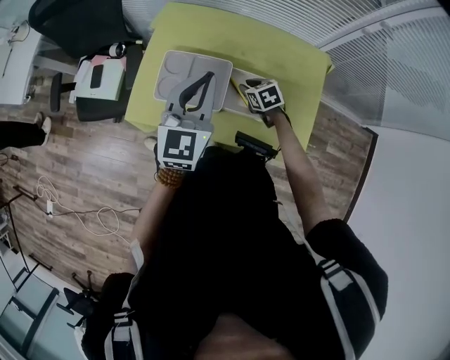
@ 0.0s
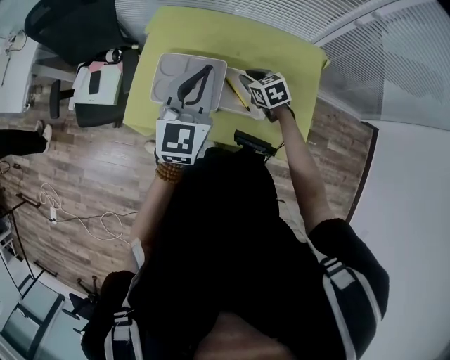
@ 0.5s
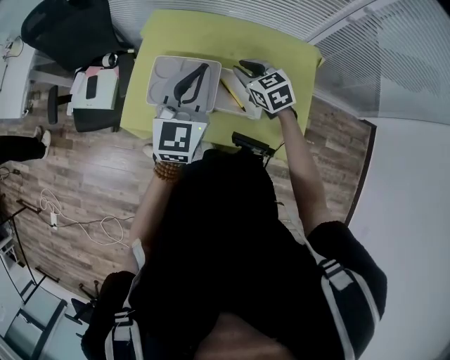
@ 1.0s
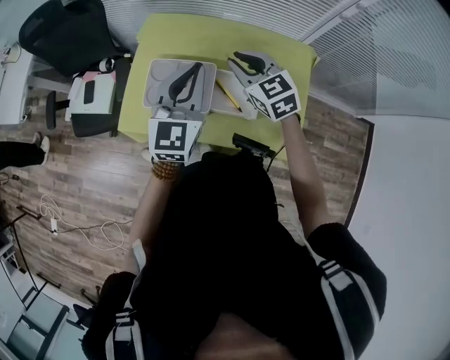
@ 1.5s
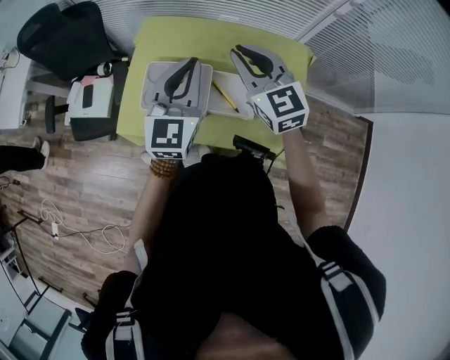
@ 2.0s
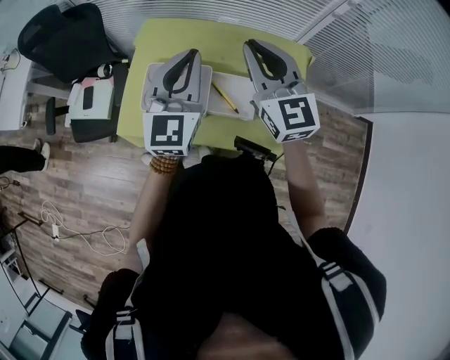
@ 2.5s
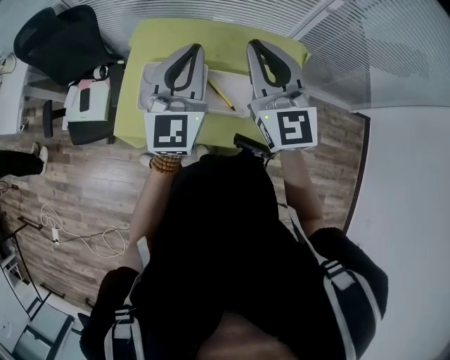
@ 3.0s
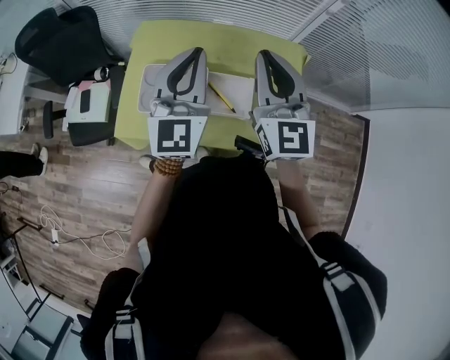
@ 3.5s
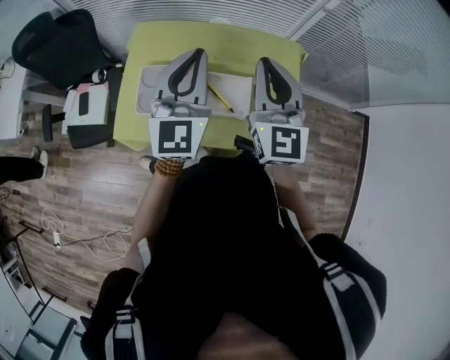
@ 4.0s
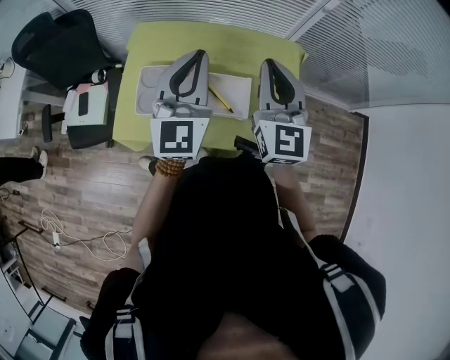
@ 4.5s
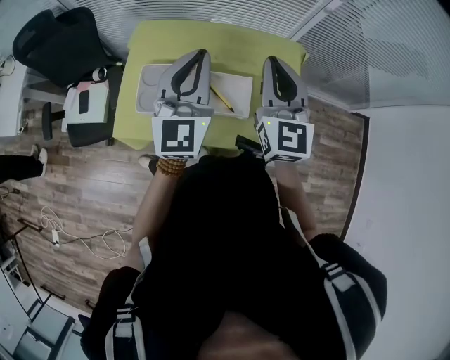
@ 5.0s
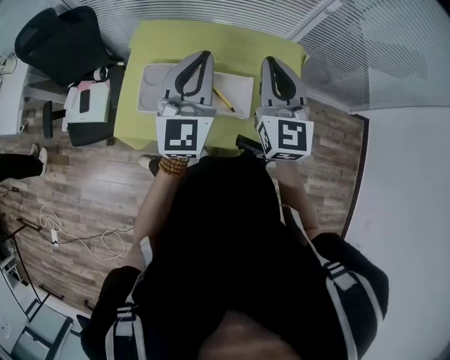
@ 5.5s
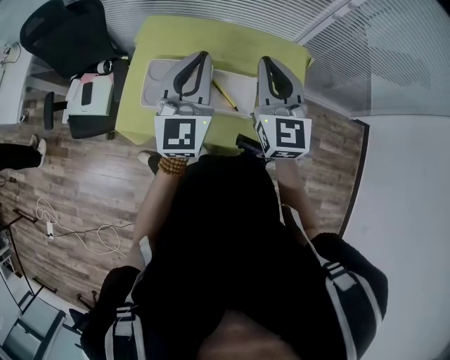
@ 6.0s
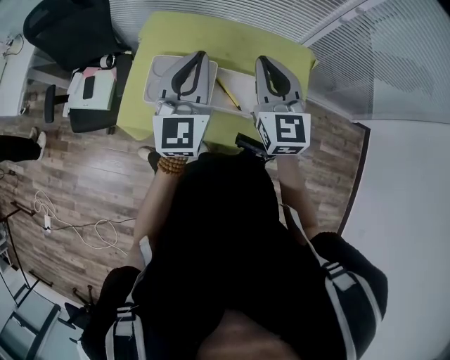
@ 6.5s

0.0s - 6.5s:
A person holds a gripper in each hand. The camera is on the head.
0.0s - 2.0s: The left gripper ends up about 5 cm from where it was, while the right gripper is displaced upward by roughly 30 cm, and points its fingers some 40 degrees further upward.
2.0s - 4.5s: The right gripper goes roughly 10 cm to the right, backward and upward, and changes its angle by roughly 30 degrees, while the left gripper shifts approximately 5 cm upward.
4.5s - 6.5s: The right gripper shifts by some 5 cm.

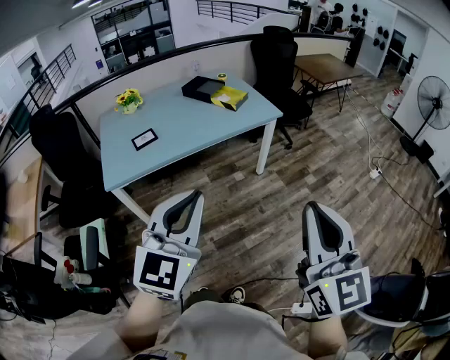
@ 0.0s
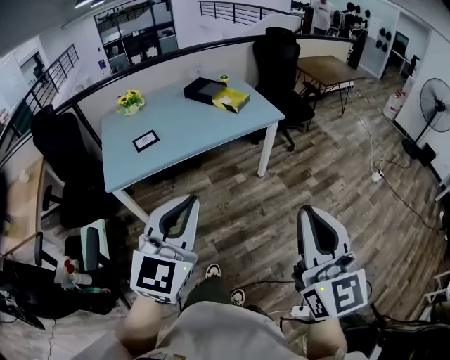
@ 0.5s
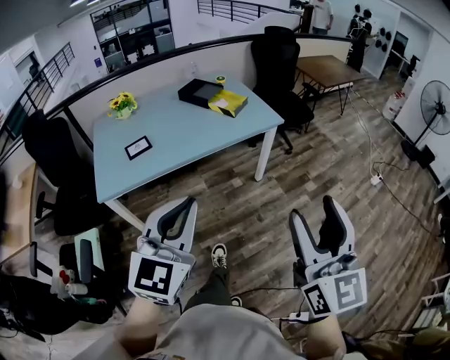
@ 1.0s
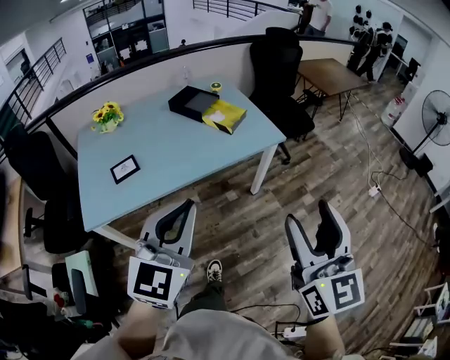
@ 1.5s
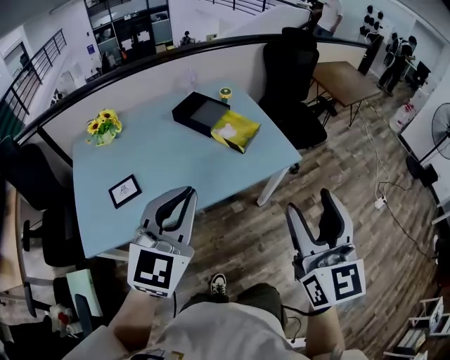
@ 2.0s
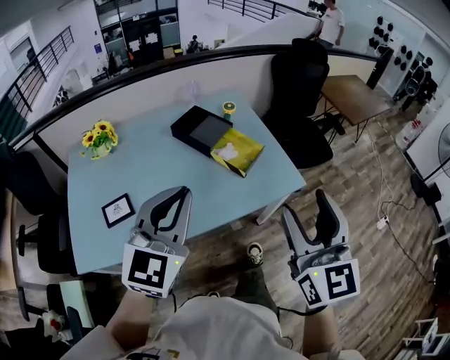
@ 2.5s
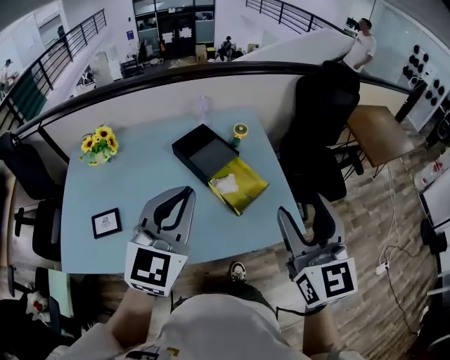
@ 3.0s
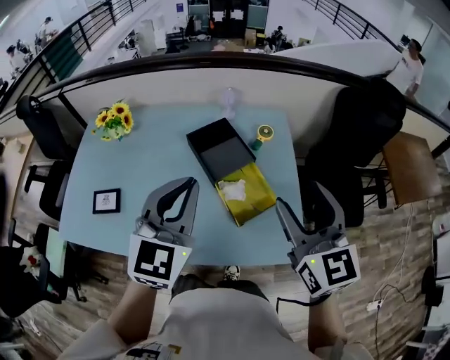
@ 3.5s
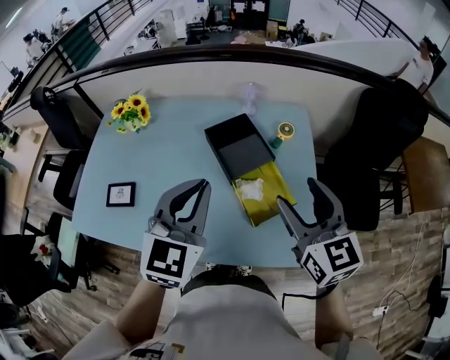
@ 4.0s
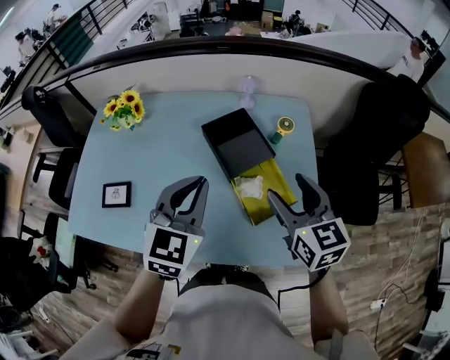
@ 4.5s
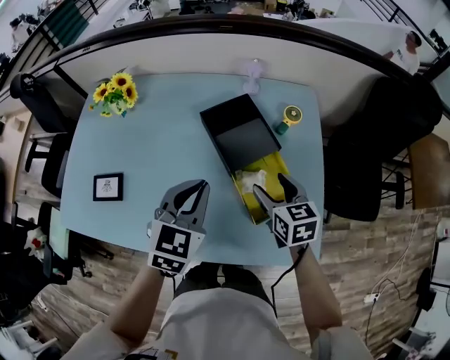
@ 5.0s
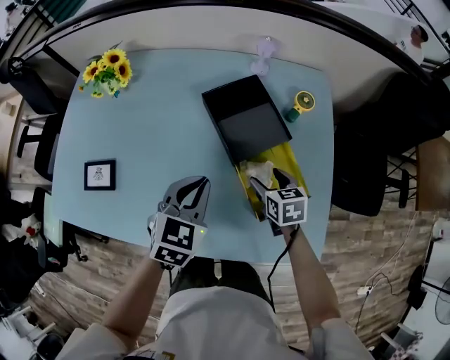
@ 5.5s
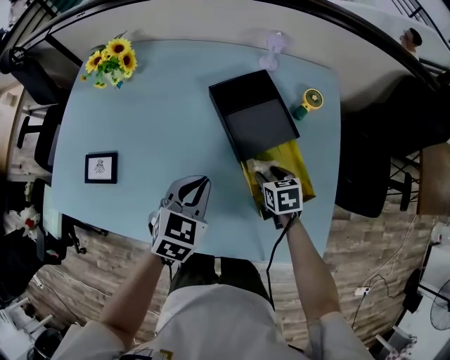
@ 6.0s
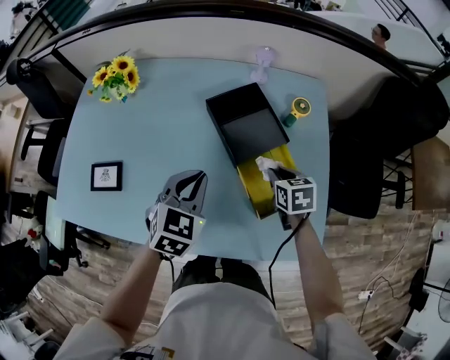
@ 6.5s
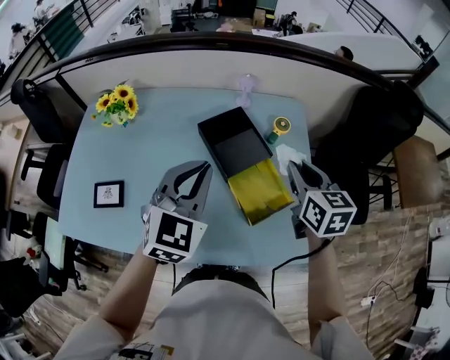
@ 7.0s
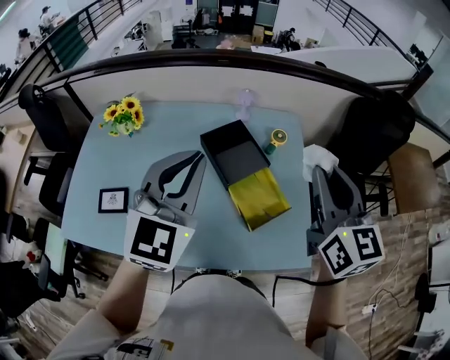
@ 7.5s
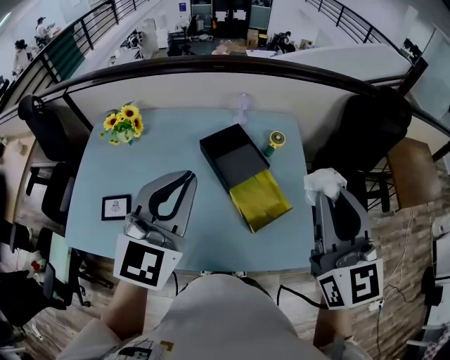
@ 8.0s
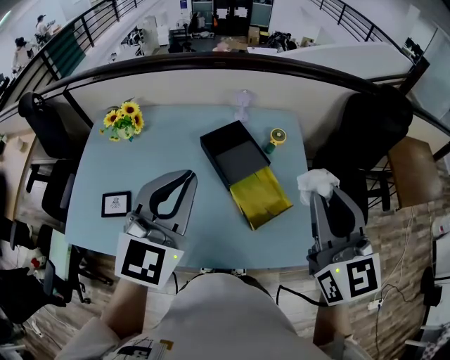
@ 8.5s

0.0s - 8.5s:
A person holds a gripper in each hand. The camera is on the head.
0.0s - 2.0s: The two grippers travel together, forward, about 50 cm. The right gripper opens its fingers.
2.0s - 4.0s: The left gripper changes place by roughly 40 cm, and changes its angle by roughly 30 degrees. Meanwhile the right gripper ends up about 50 cm from where it was, and rotates approximately 40 degrees.
4.0s - 6.5s: The right gripper shifts approximately 30 cm downward, tips its fingers downward by roughly 40 degrees, and closes up. Meanwhile the left gripper moves downward, some 20 cm, and rotates approximately 20 degrees.
6.5s - 8.5s: The right gripper moves upward, roughly 40 cm, and points its fingers some 50 degrees further upward, while the left gripper heads upward, covering about 25 cm, and points its fingers approximately 30 degrees further upward.

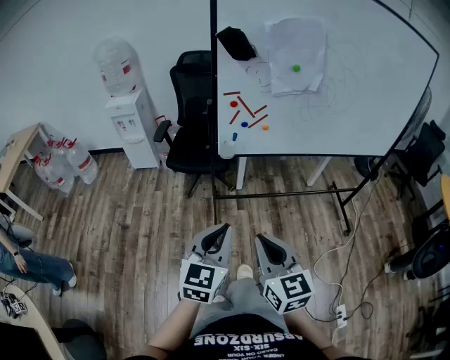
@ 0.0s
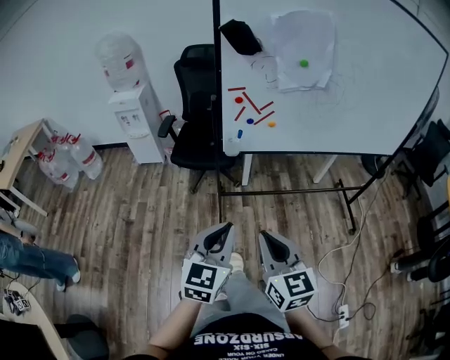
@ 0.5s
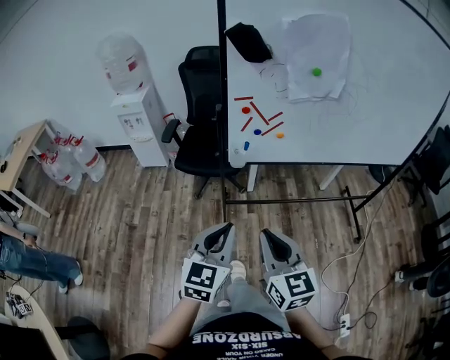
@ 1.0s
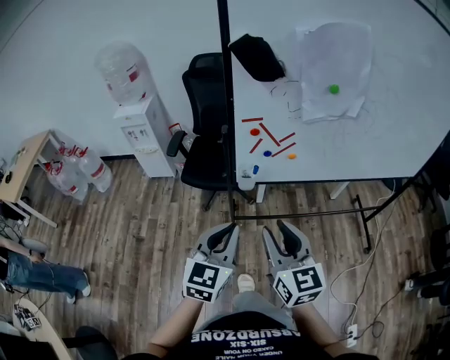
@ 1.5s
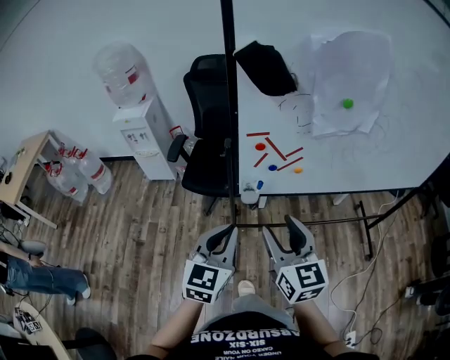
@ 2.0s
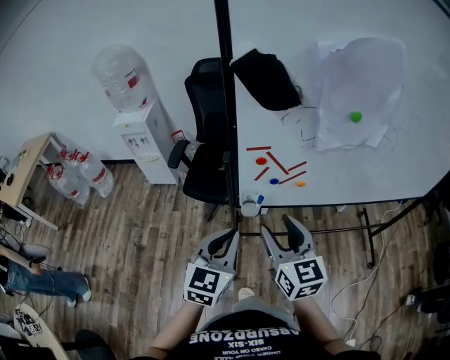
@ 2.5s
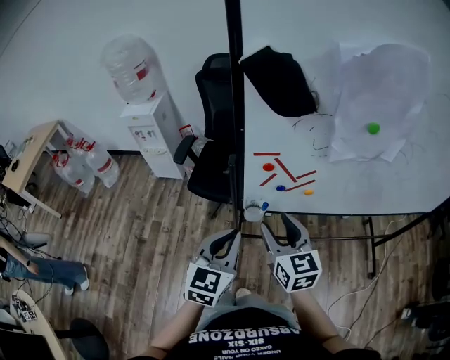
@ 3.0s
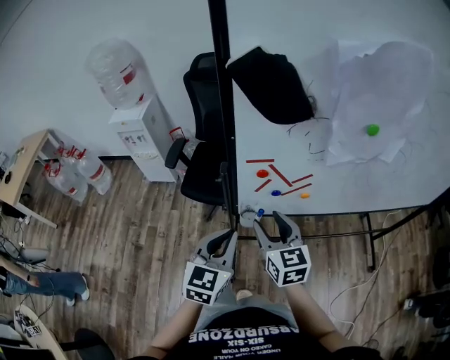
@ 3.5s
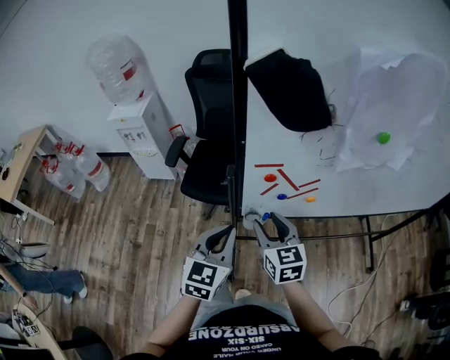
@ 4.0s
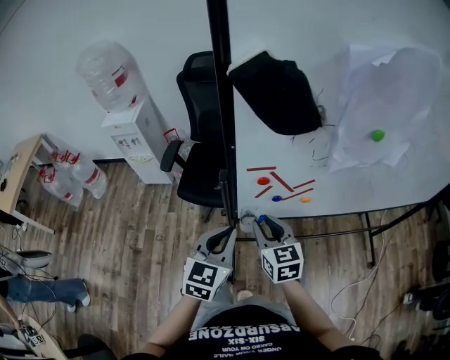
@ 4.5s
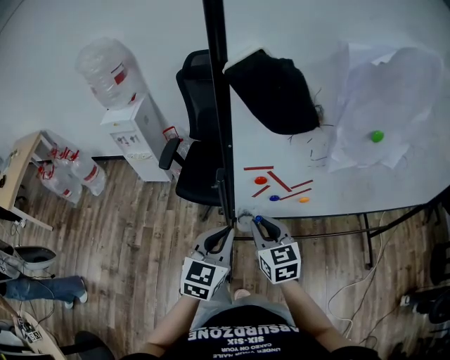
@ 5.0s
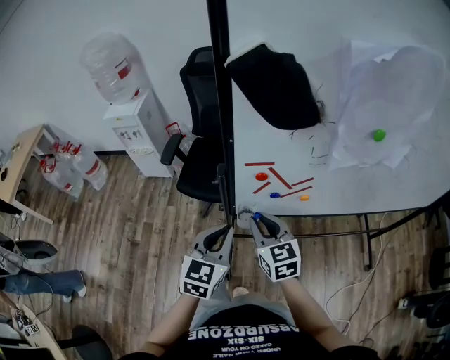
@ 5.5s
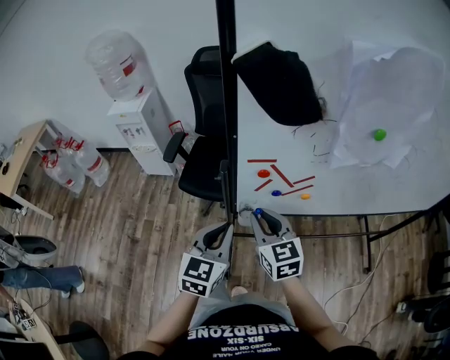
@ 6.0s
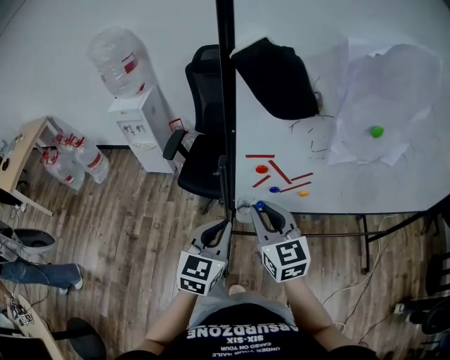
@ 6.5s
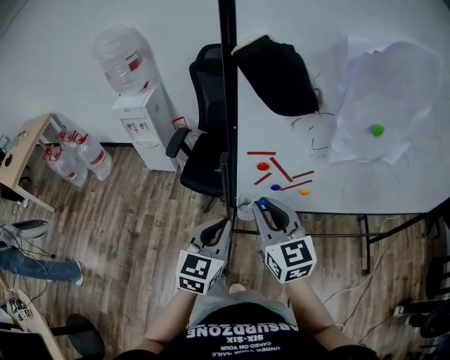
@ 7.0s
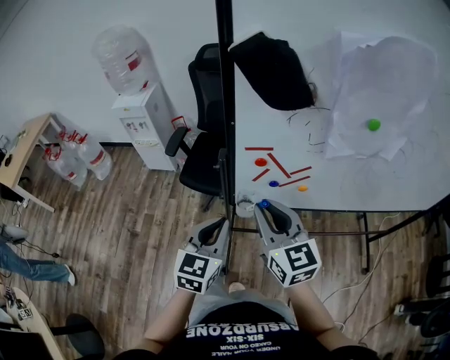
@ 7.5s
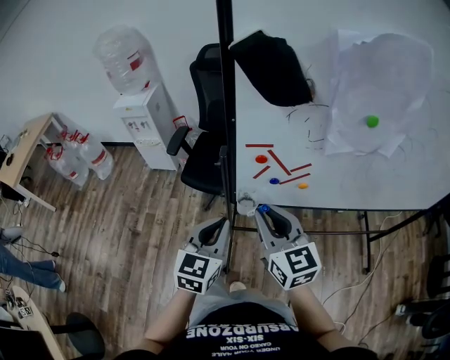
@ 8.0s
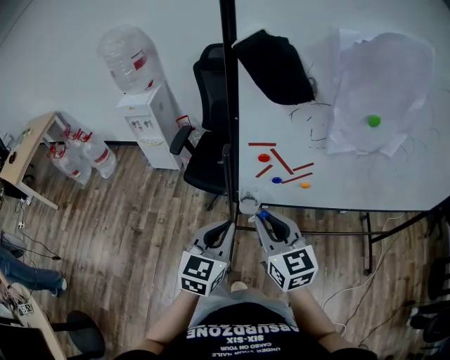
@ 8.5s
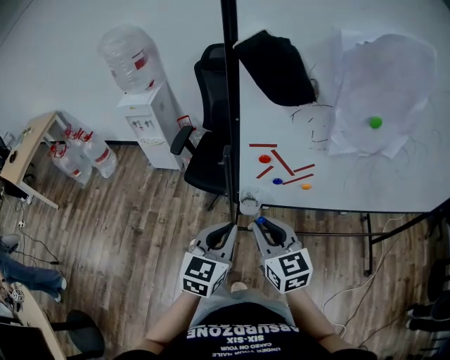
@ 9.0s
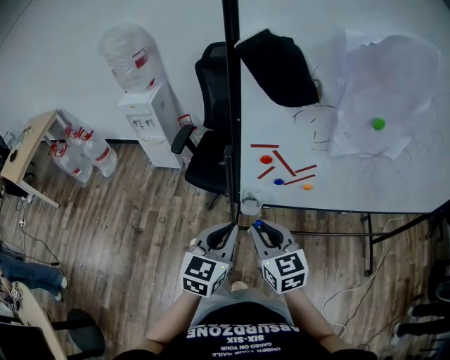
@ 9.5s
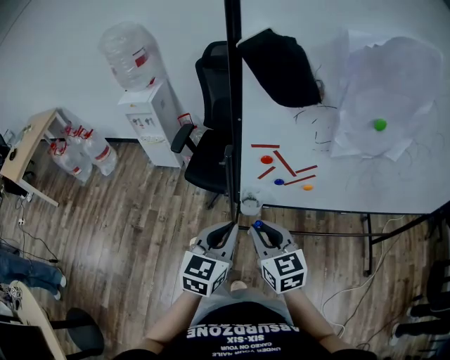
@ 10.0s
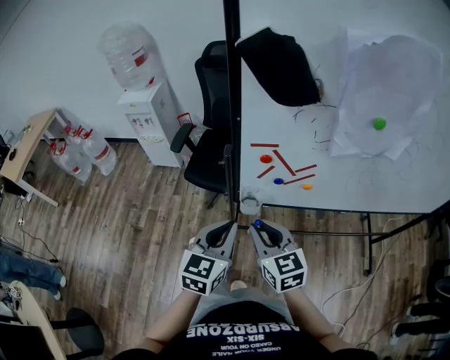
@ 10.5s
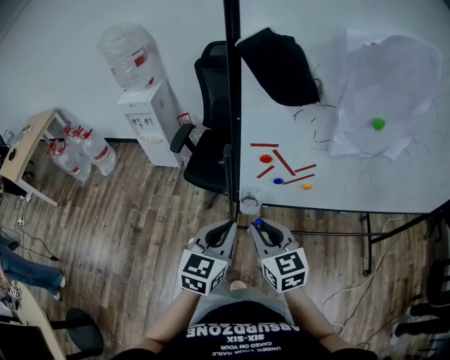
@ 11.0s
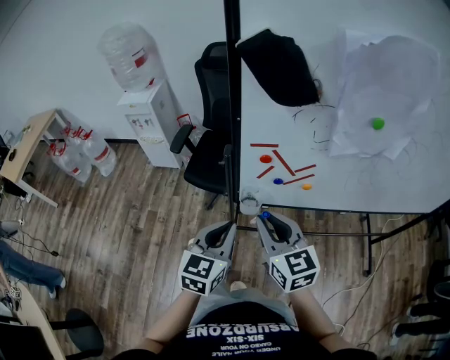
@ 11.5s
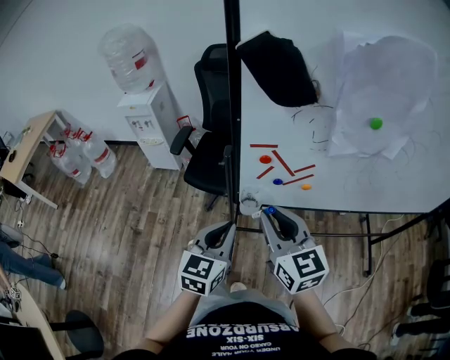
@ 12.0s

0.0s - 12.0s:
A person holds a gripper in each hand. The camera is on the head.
0.0s - 2.0s: Both grippers travel together forward, about 25 cm. The right gripper opens up.
2.0s - 4.0s: The two grippers go approximately 15 cm forward and downward.
4.0s - 6.0s: The right gripper closes its fingers.
6.0s - 8.0s: The right gripper goes approximately 10 cm upward and backward.
8.0s - 10.0s: The right gripper goes approximately 10 cm downward.
10.0s - 12.0s: The right gripper shifts about 10 cm upward.
